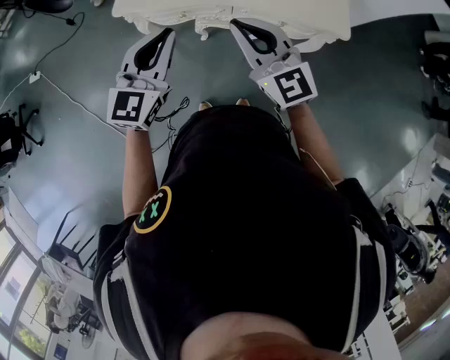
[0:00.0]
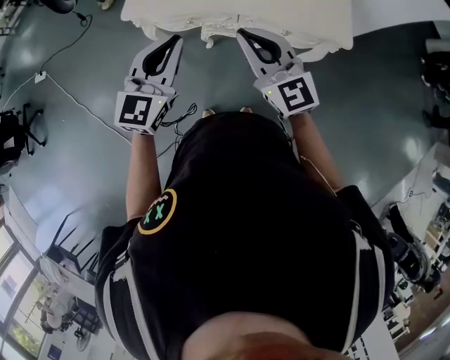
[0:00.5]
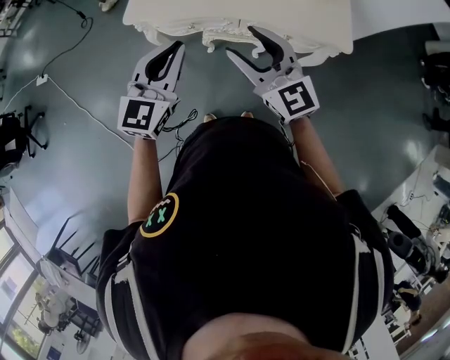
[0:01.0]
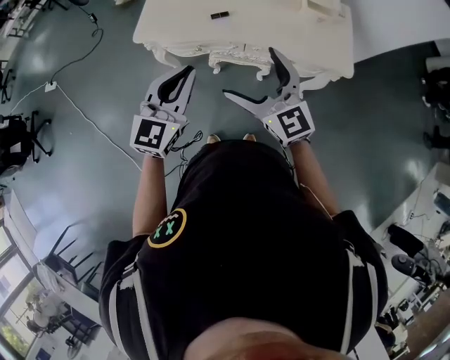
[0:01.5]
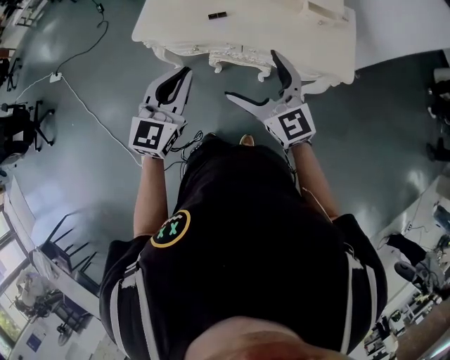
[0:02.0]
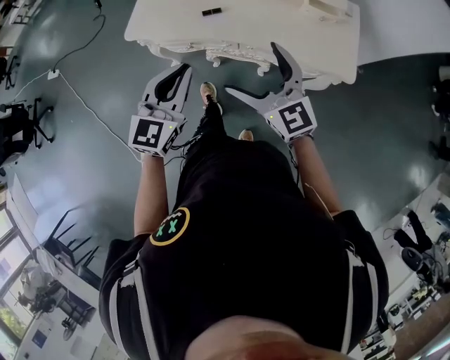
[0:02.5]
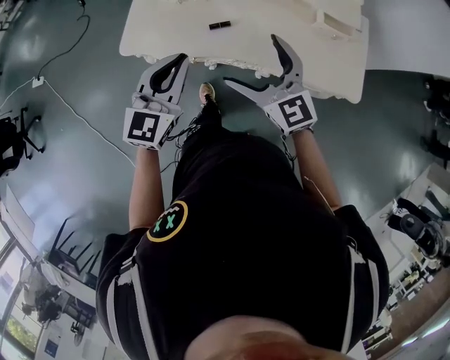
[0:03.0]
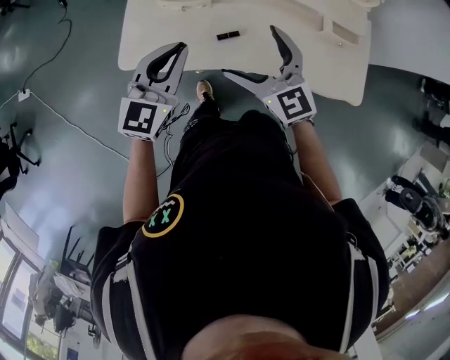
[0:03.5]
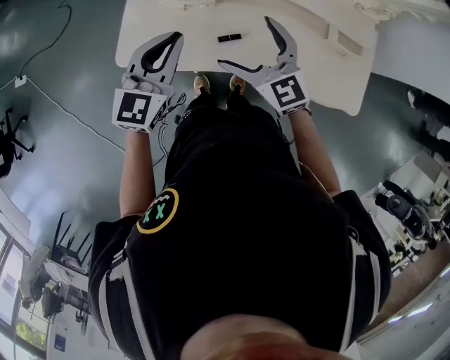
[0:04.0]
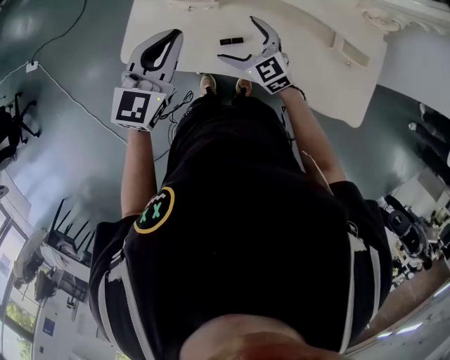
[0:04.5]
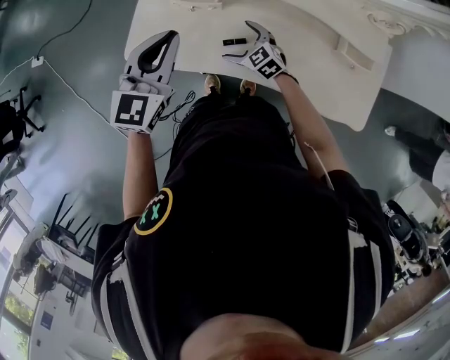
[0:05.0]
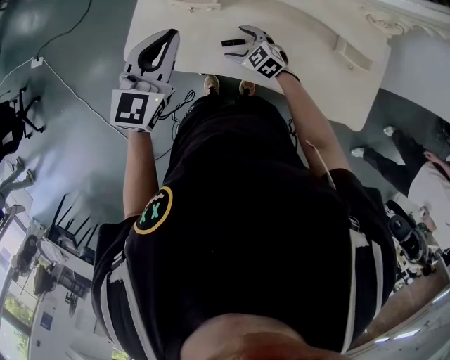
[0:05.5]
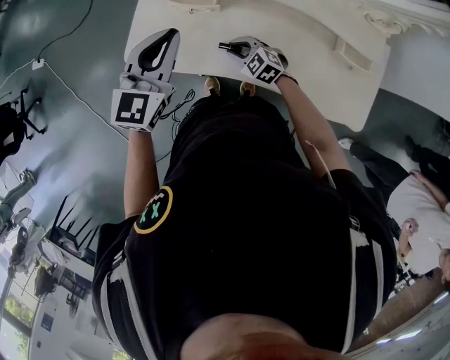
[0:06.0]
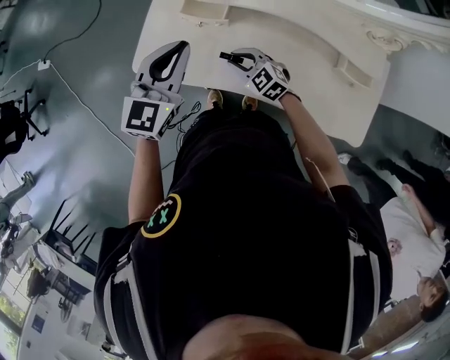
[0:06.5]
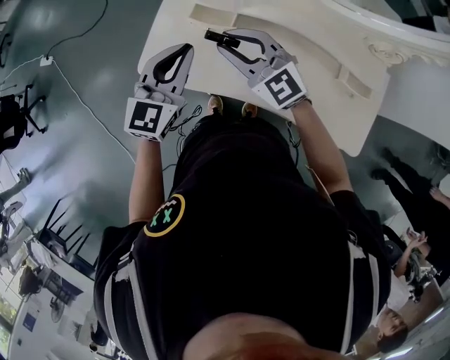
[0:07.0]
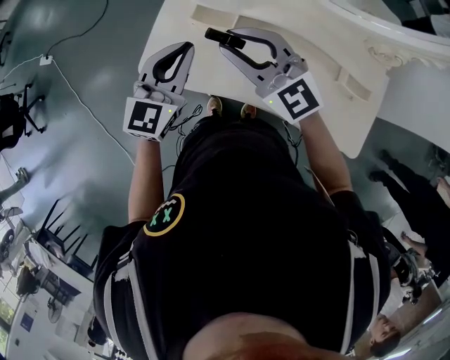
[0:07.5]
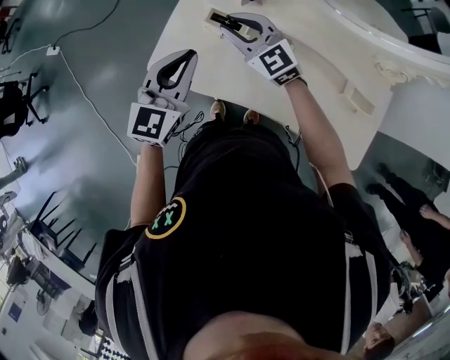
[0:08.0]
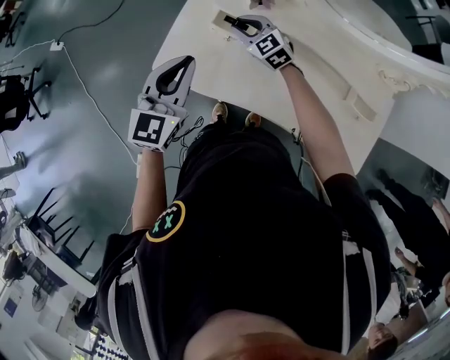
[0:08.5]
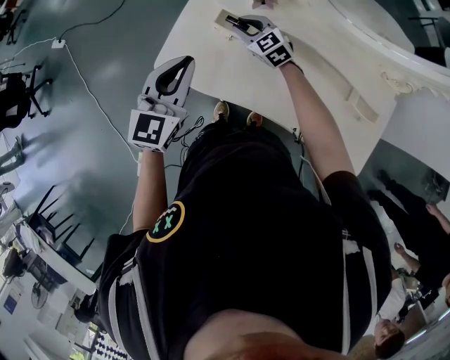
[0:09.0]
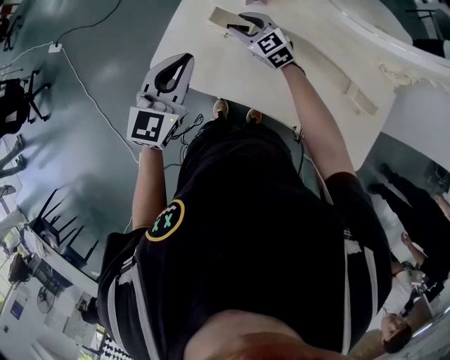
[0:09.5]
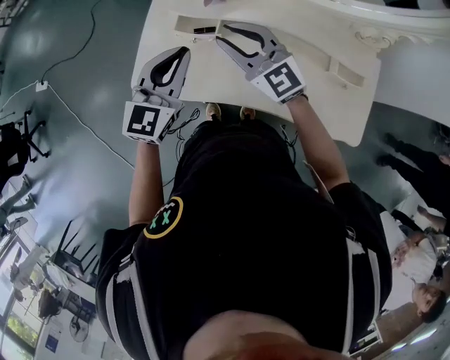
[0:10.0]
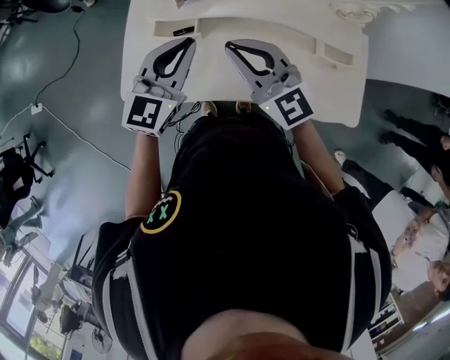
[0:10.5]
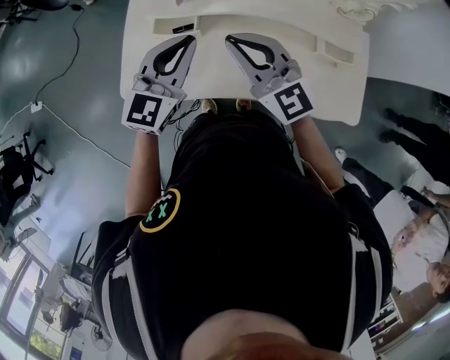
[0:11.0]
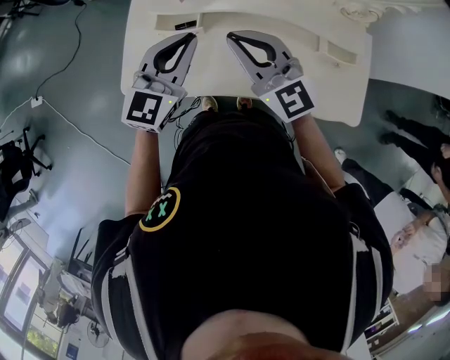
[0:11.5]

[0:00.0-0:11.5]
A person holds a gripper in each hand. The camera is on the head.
0:00.0 to 0:02.0: The right gripper shifts by approximately 5 cm, and opens up.
0:02.0 to 0:04.0: The grippers both shift forward by approximately 35 cm.
0:04.0 to 0:06.0: The right gripper heads downward, covering roughly 20 cm, turns by roughly 40 degrees, and closes up.
0:06.0 to 0:07.5: The right gripper travels upward by about 30 cm, and tips its fingers upward by some 40 degrees.
0:07.5 to 0:09.5: The right gripper travels downward and forward by some 25 cm, and rotates some 20 degrees.
0:09.5 to 0:11.5: The right gripper moves upward, backward and to the right, approximately 25 cm, and rotates about 30 degrees, while the left gripper heads to the right, covering some 15 cm.

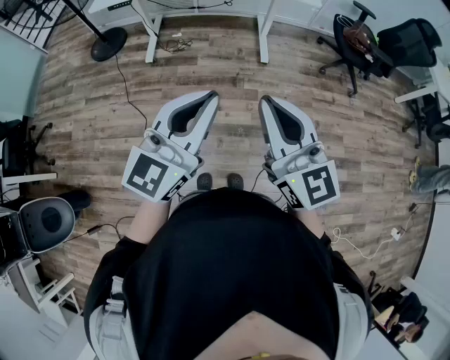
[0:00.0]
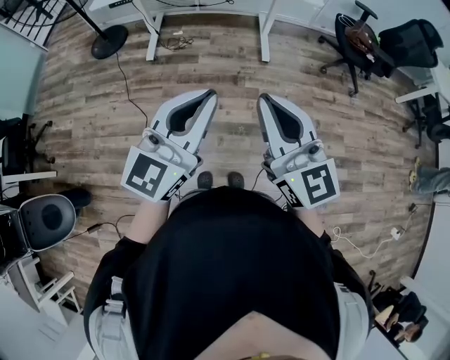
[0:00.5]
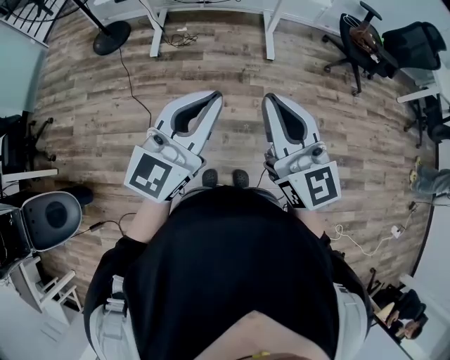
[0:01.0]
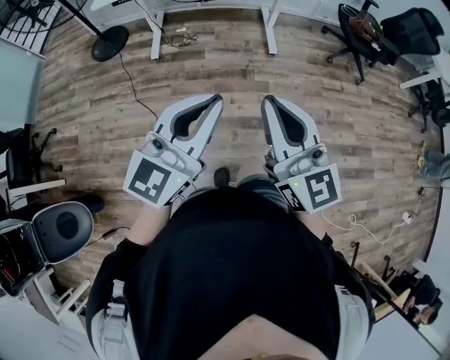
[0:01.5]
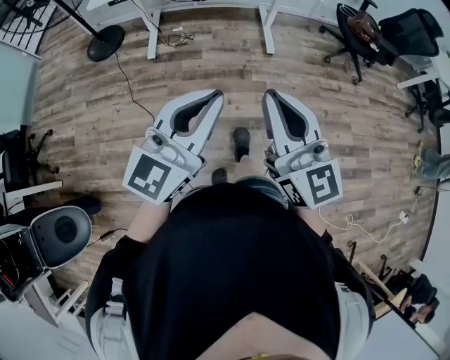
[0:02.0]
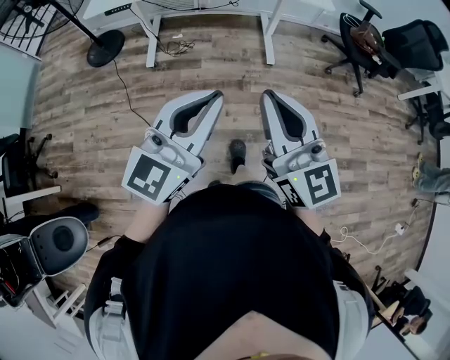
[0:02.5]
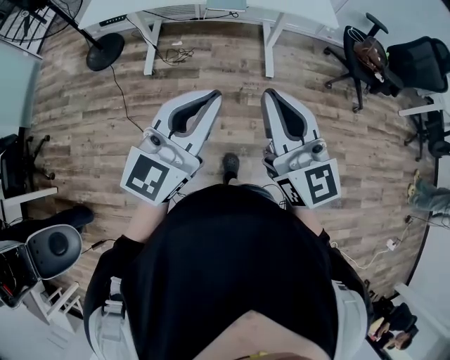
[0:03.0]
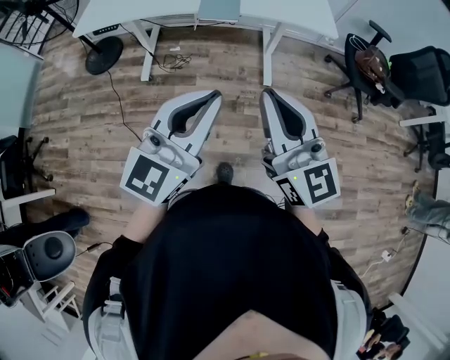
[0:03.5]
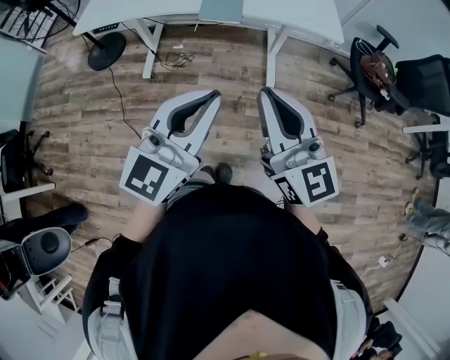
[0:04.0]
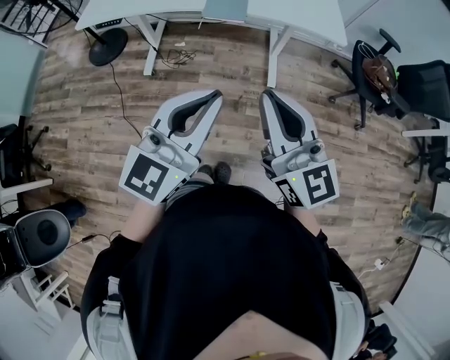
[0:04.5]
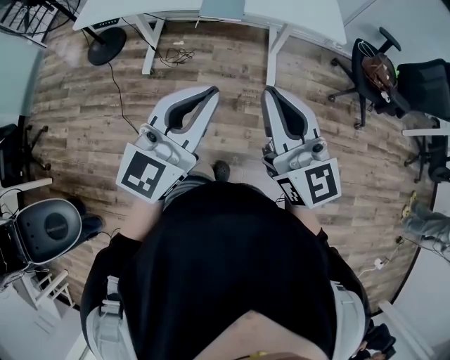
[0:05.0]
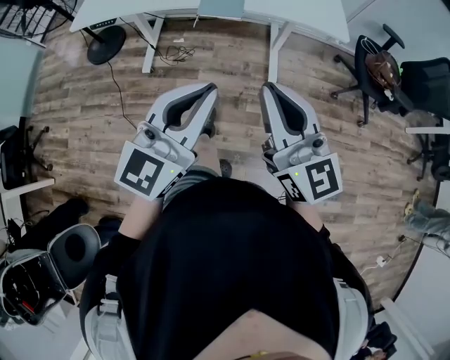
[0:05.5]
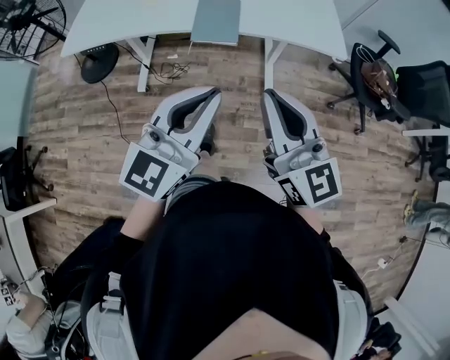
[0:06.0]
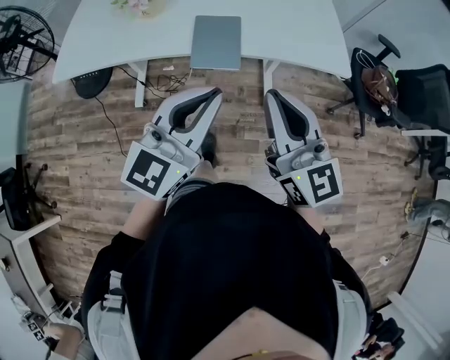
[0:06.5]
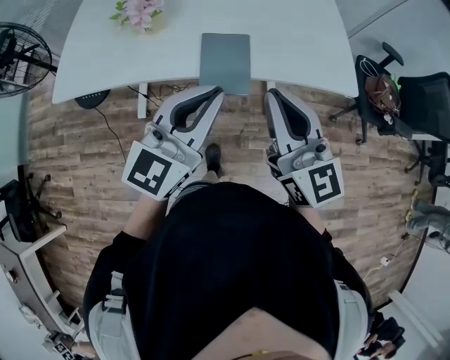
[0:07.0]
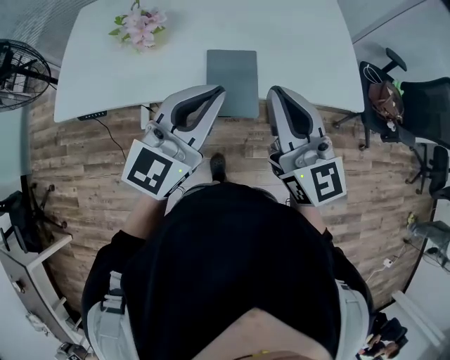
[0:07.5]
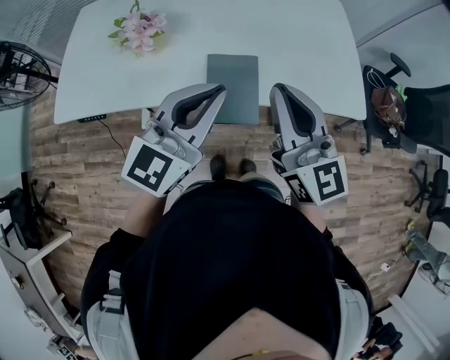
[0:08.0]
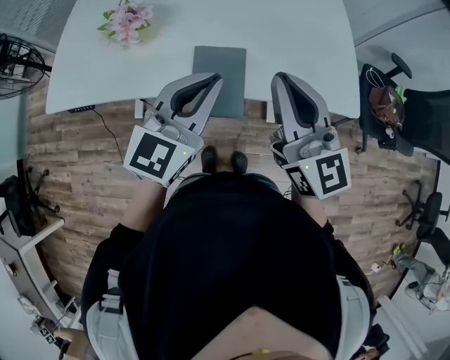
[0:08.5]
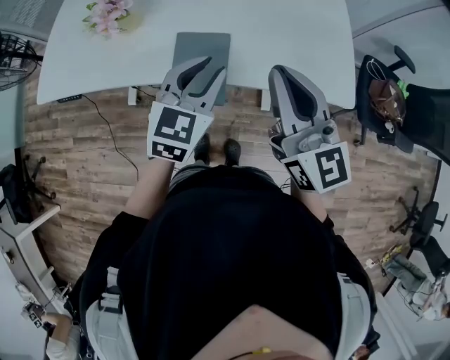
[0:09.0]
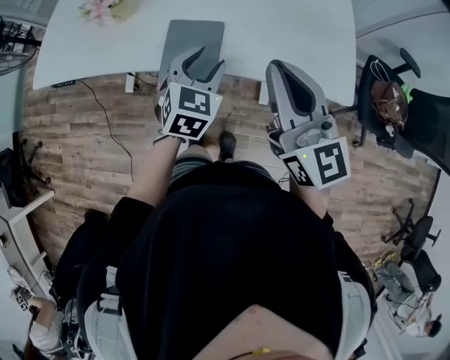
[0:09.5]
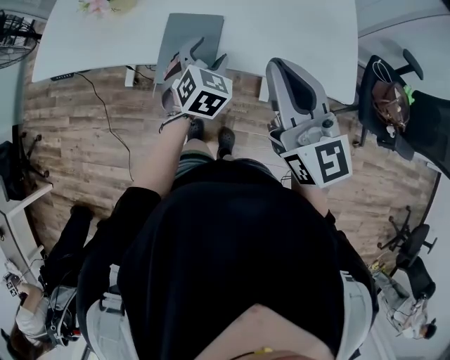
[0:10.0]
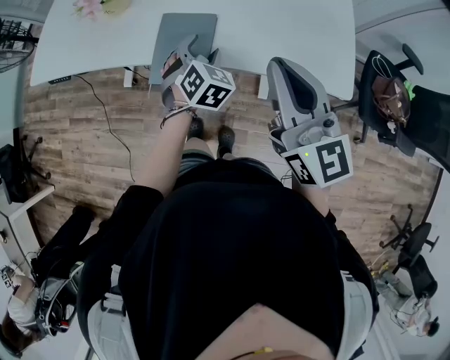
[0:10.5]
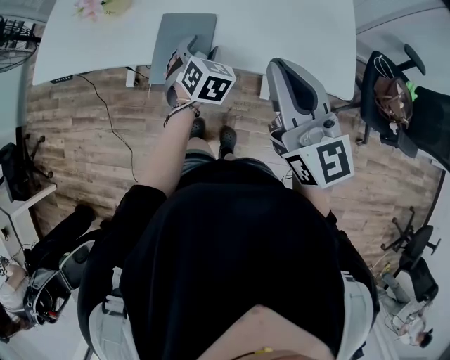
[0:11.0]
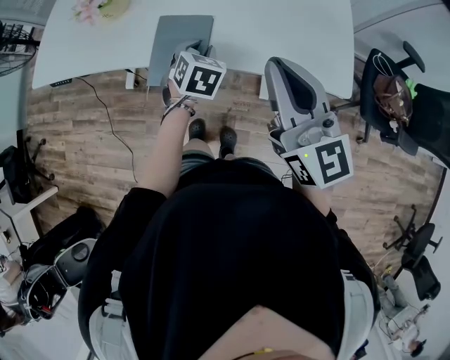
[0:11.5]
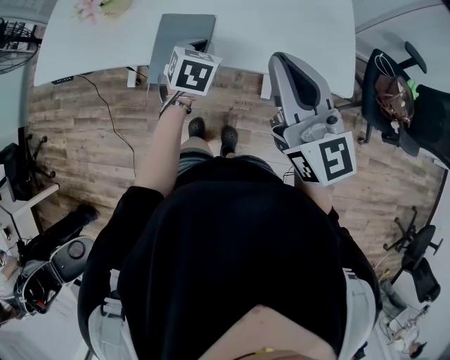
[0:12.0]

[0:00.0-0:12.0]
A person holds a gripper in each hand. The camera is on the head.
0:00.0 to 0:02.0: Both grippers travel together to the left, some 10 cm.
0:02.0 to 0:04.0: Both grippers move forward, some 25 cm.
0:04.0 to 0:06.0: The two grippers go approximately 10 cm forward.
0:06.0 to 0:08.0: Both grippers travel together forward, some 25 cm.
0:08.0 to 0:10.0: The right gripper travels to the right by about 10 cm; the left gripper is displaced downward by roughly 20 cm, tilts its fingers approximately 40 degrees downward, and opens up.
0:10.0 to 0:12.0: The left gripper closes up.

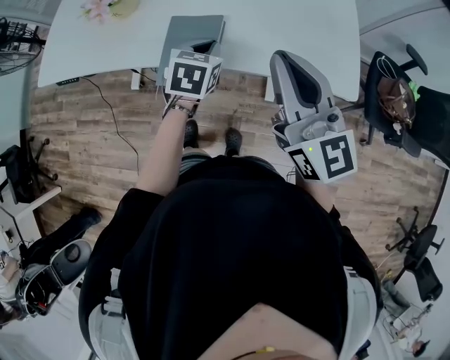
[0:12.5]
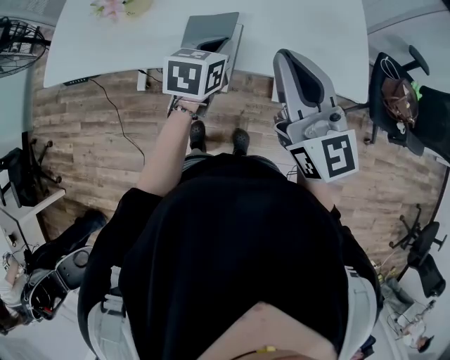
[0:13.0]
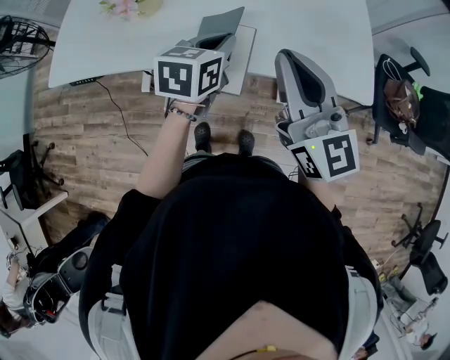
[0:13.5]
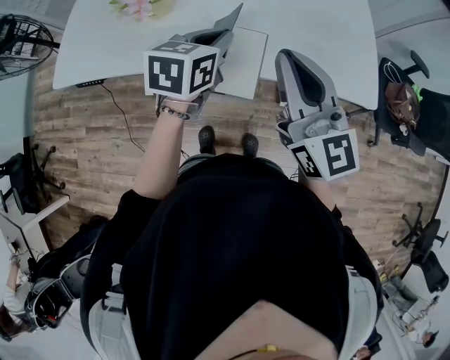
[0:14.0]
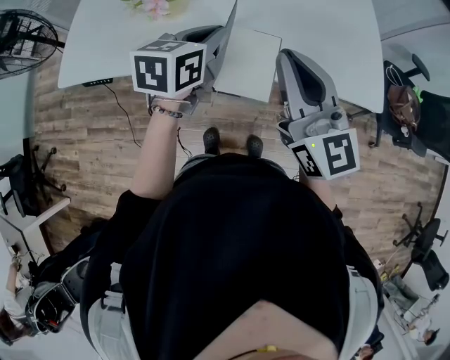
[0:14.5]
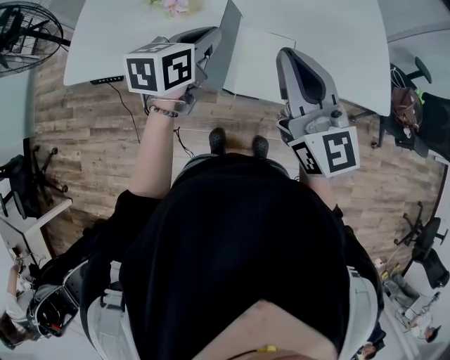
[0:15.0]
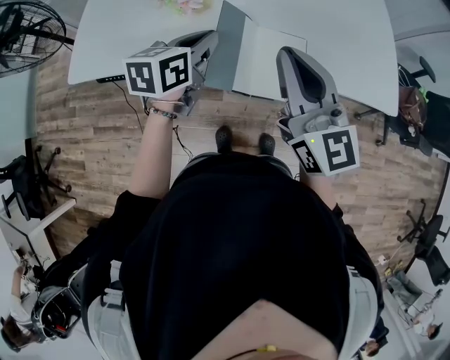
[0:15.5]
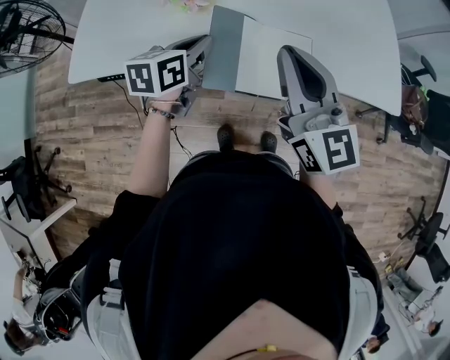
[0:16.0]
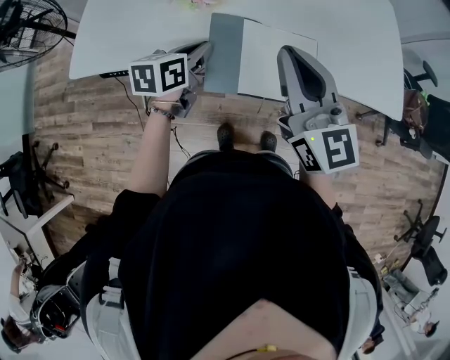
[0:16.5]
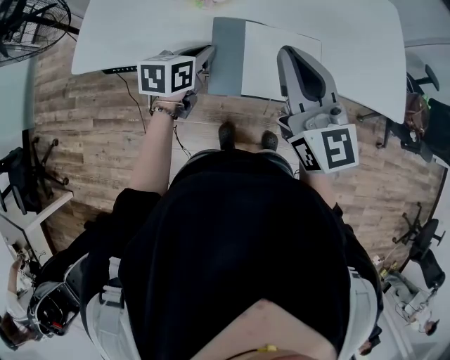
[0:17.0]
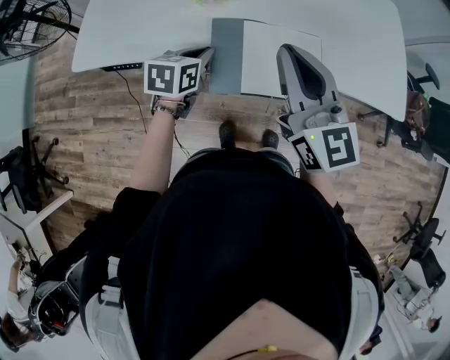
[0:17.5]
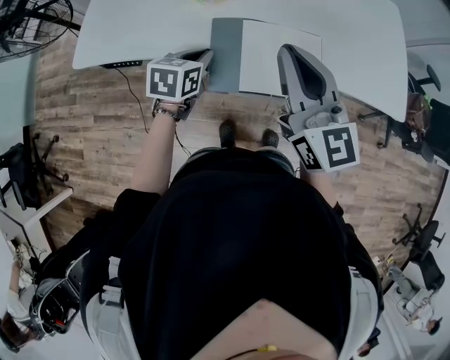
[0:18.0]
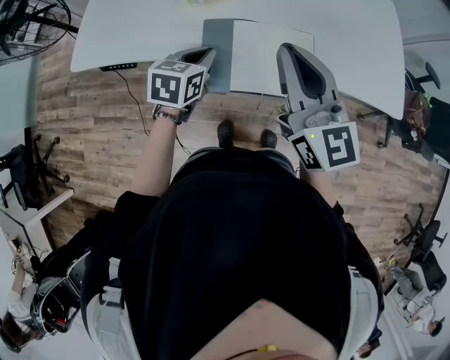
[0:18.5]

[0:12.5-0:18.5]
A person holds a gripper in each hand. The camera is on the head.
0:12.5 to 0:14.5: The right gripper is displaced to the left by some 15 cm, while the left gripper heads to the left and upward, covering some 15 cm, and changes its angle by about 20 degrees.
0:14.5 to 0:16.5: The right gripper goes roughly 10 cm to the left. Meanwhile the left gripper heads to the left and downward, covering approximately 15 cm.
0:16.5 to 0:18.5: The grippers make only small movements.
